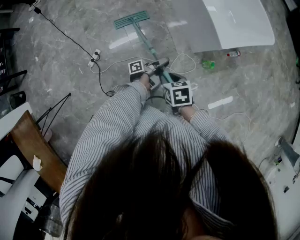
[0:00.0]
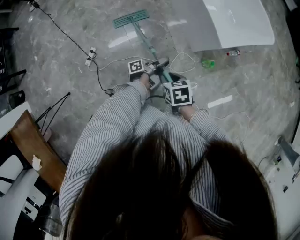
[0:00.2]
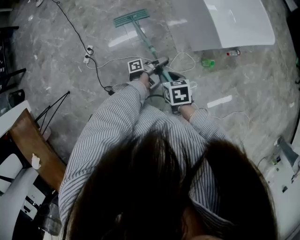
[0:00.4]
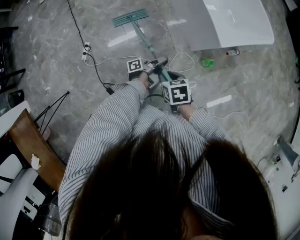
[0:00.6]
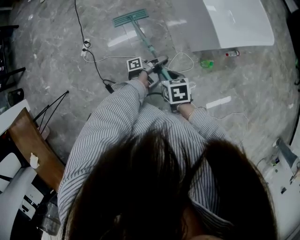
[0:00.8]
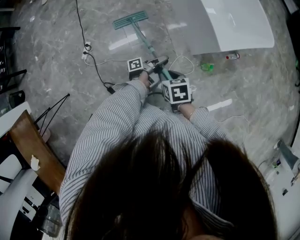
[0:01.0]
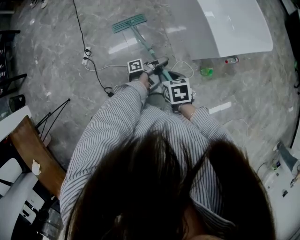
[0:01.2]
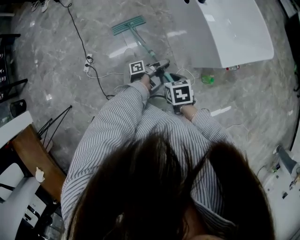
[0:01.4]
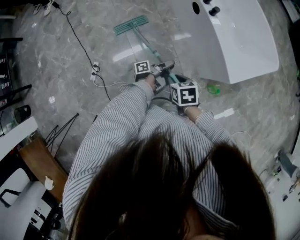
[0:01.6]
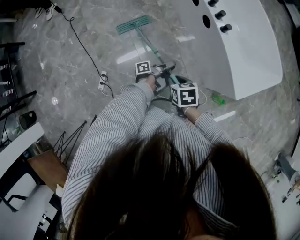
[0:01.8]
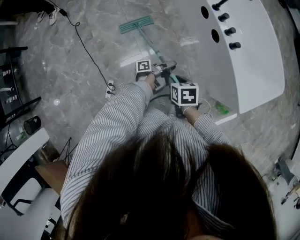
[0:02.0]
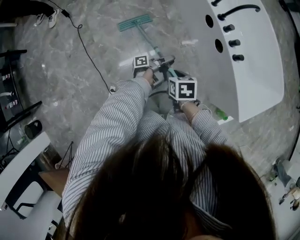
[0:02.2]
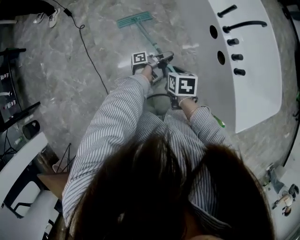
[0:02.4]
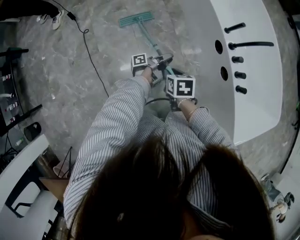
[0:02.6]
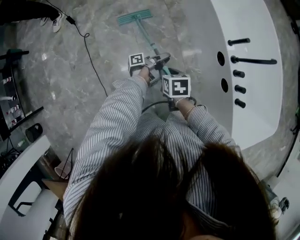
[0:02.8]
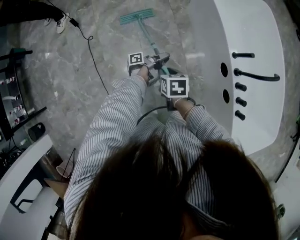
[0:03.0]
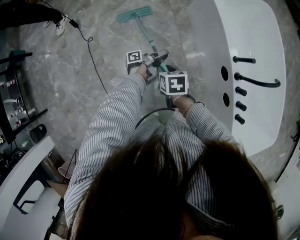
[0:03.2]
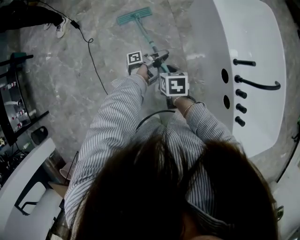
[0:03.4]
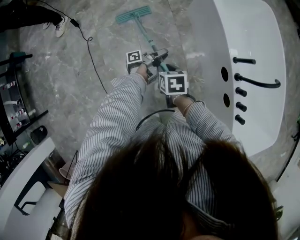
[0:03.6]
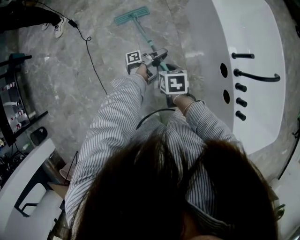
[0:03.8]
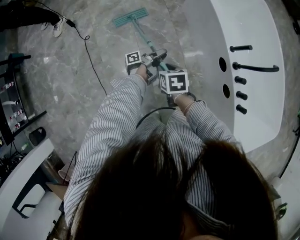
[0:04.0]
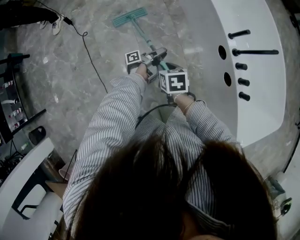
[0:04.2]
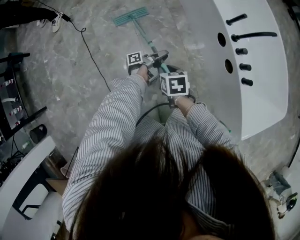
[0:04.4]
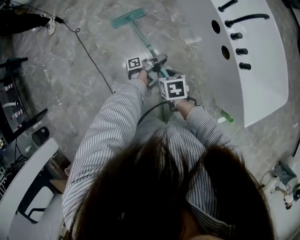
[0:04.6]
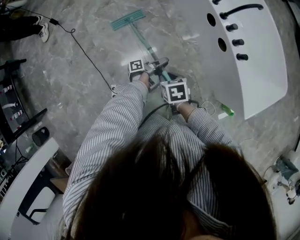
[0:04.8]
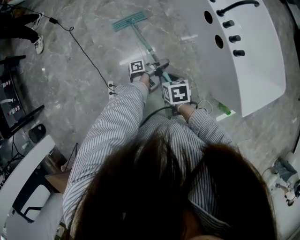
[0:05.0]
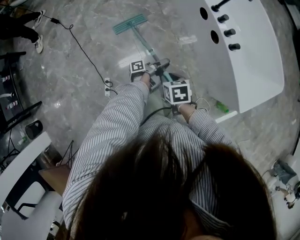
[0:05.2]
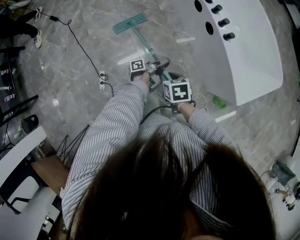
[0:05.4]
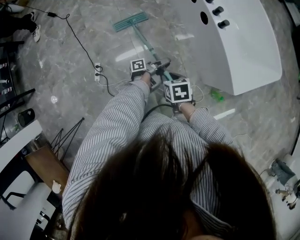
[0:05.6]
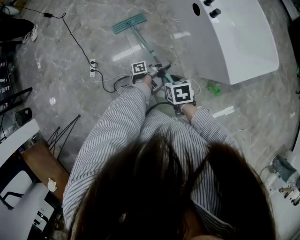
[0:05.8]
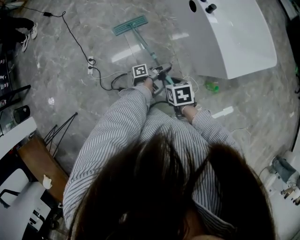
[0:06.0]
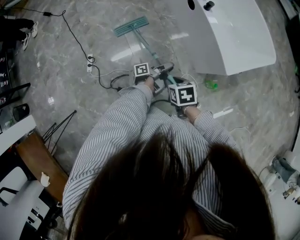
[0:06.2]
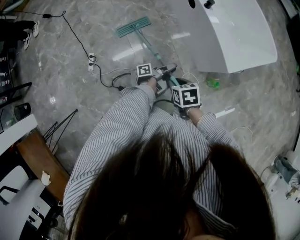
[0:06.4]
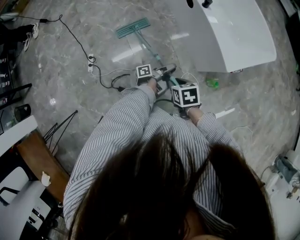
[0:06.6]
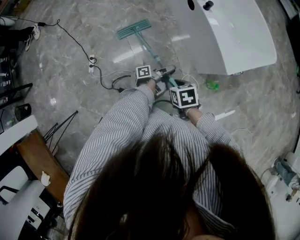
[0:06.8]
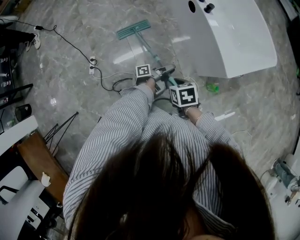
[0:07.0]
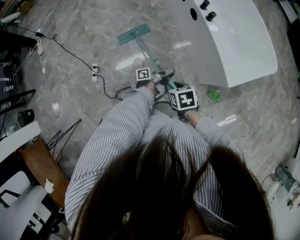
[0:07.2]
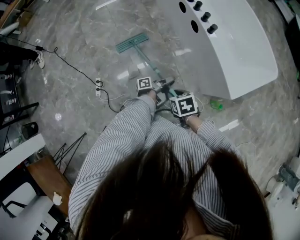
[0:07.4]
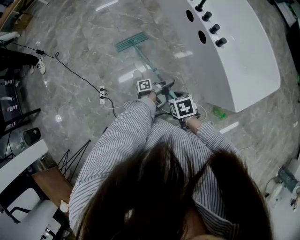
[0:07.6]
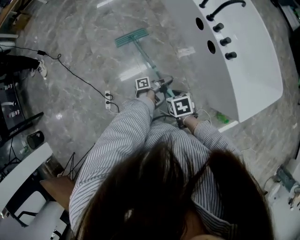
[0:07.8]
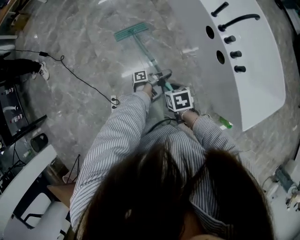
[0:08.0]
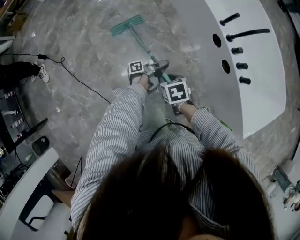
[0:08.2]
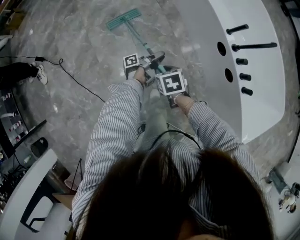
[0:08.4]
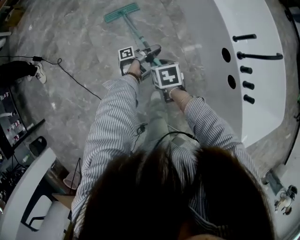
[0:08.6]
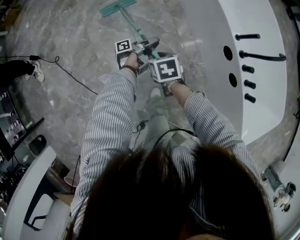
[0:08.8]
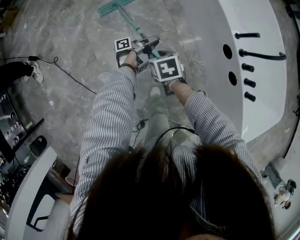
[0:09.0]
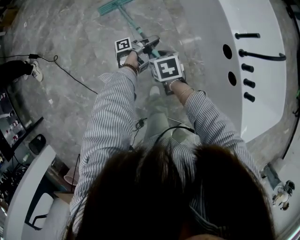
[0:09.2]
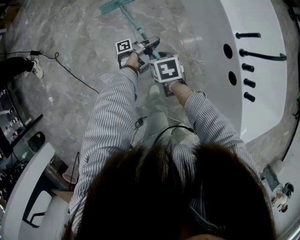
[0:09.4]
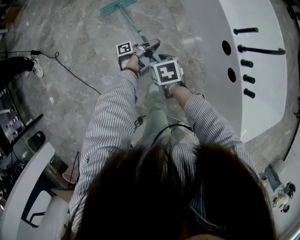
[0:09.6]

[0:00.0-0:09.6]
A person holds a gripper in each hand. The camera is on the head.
0:00.0 to 0:01.6: The right gripper shifts by approximately 20 cm.
0:01.6 to 0:03.2: The right gripper moves approximately 70 cm.
0:03.2 to 0:04.8: The right gripper ends up about 35 cm from where it was.
0:04.8 to 0:06.4: The right gripper shifts by approximately 50 cm.
0:06.4 to 0:08.0: The right gripper changes place by approximately 50 cm.
0:08.0 to 0:09.6: The right gripper shifts by roughly 30 cm.

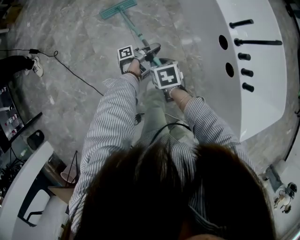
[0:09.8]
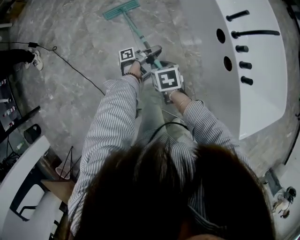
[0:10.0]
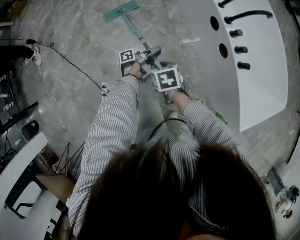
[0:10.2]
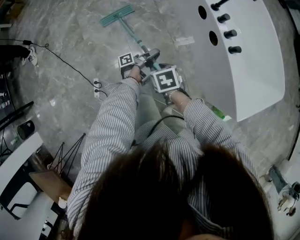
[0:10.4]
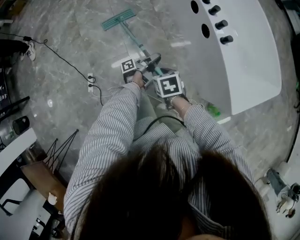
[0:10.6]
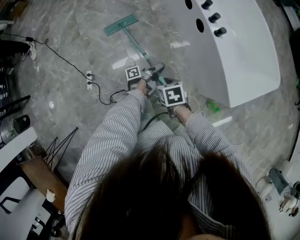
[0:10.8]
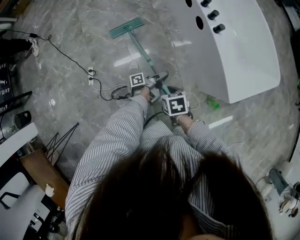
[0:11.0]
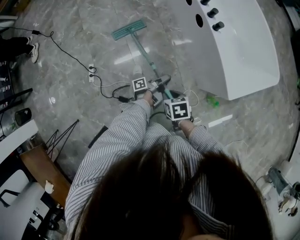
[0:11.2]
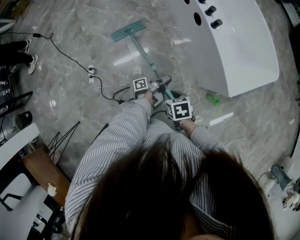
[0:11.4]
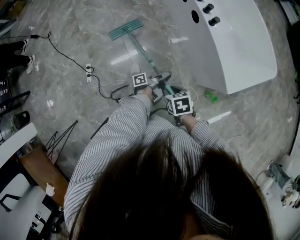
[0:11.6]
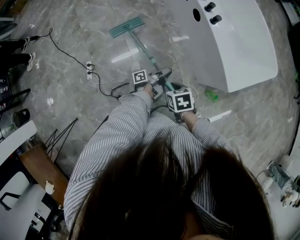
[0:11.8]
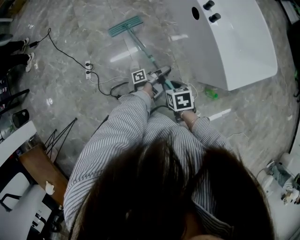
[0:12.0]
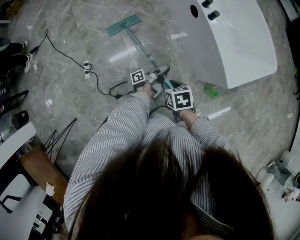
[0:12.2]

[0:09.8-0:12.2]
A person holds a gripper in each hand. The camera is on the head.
0:09.8 to 0:11.0: The right gripper moves about 60 cm.

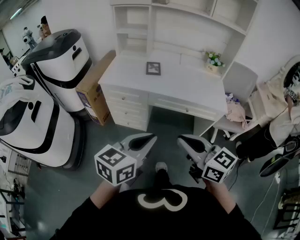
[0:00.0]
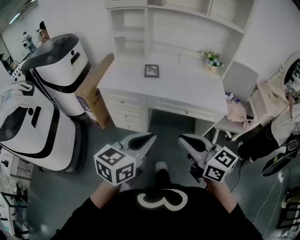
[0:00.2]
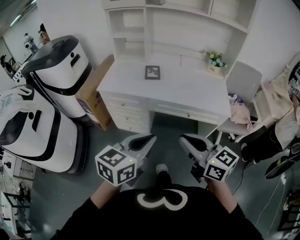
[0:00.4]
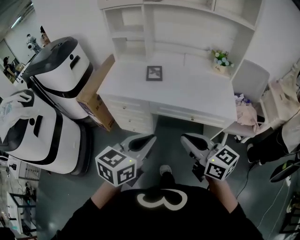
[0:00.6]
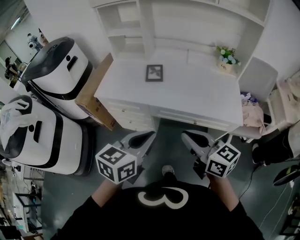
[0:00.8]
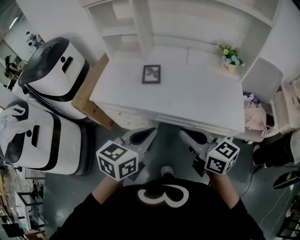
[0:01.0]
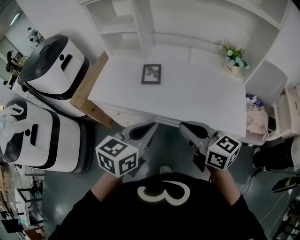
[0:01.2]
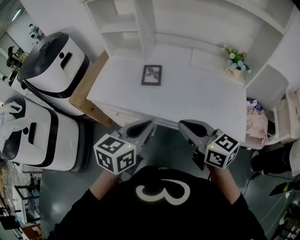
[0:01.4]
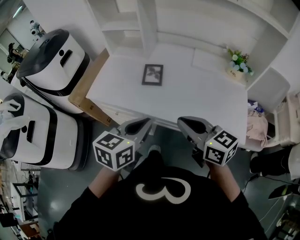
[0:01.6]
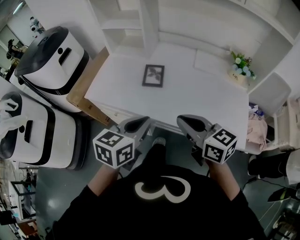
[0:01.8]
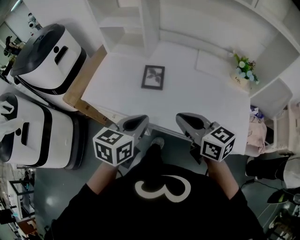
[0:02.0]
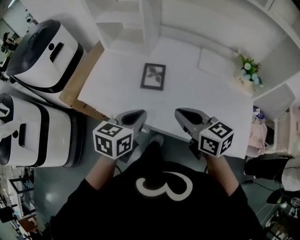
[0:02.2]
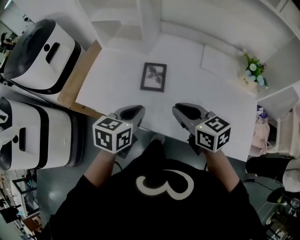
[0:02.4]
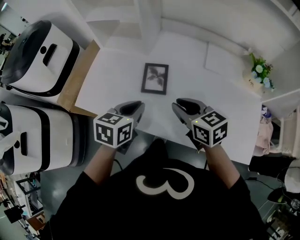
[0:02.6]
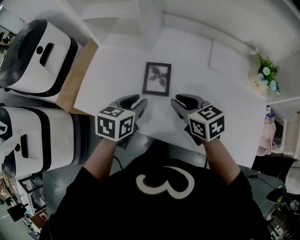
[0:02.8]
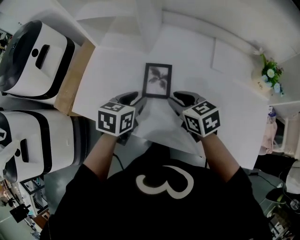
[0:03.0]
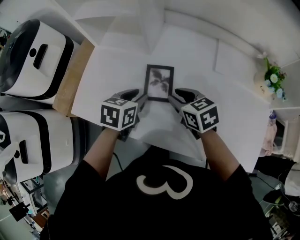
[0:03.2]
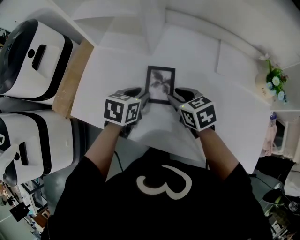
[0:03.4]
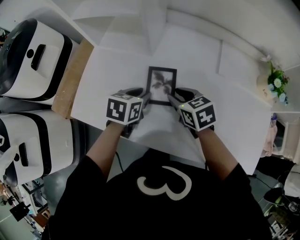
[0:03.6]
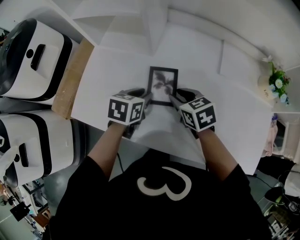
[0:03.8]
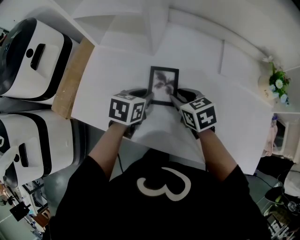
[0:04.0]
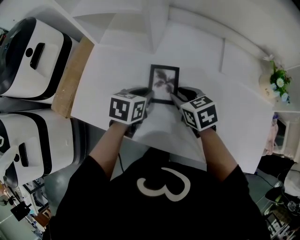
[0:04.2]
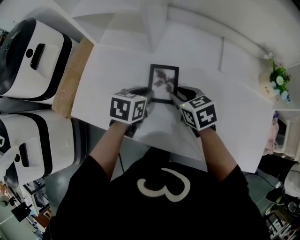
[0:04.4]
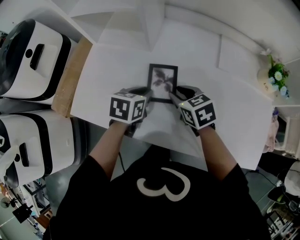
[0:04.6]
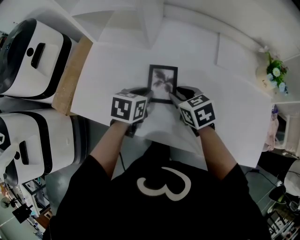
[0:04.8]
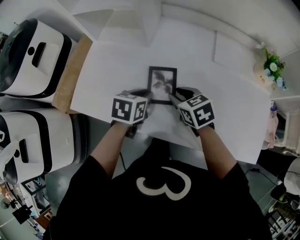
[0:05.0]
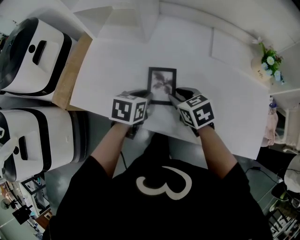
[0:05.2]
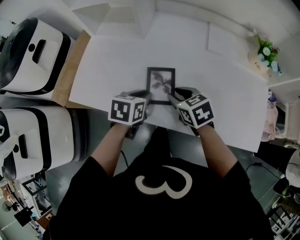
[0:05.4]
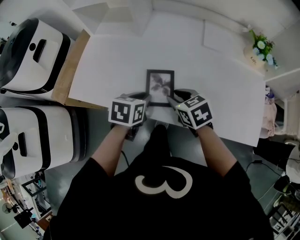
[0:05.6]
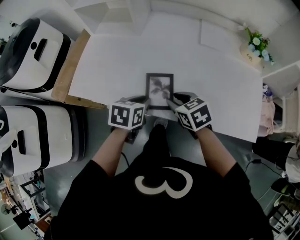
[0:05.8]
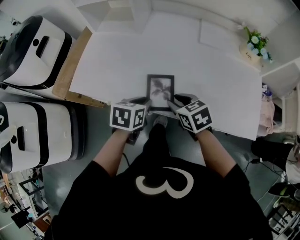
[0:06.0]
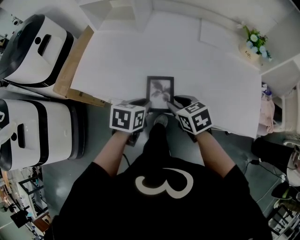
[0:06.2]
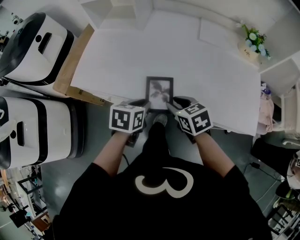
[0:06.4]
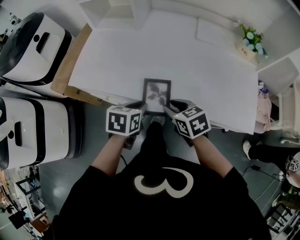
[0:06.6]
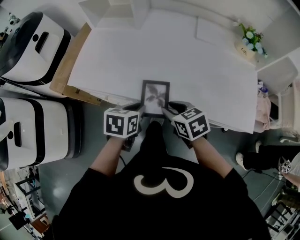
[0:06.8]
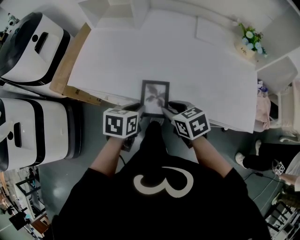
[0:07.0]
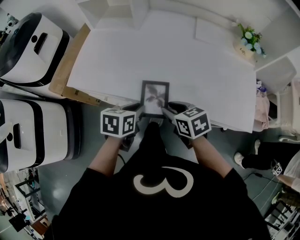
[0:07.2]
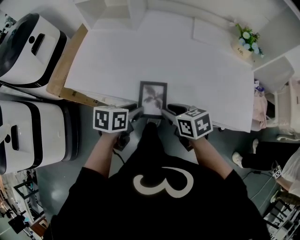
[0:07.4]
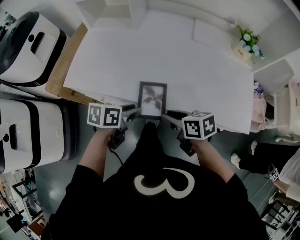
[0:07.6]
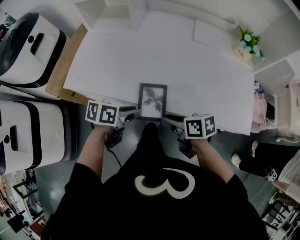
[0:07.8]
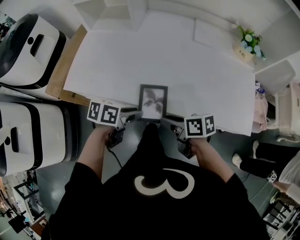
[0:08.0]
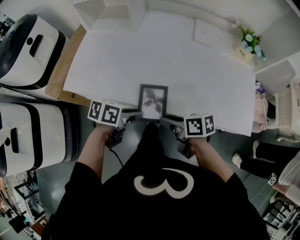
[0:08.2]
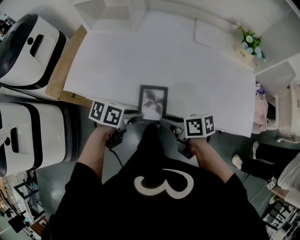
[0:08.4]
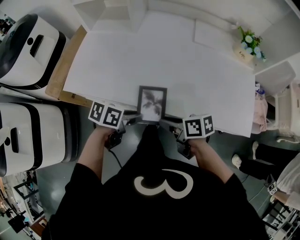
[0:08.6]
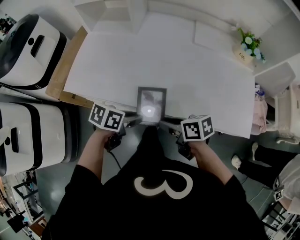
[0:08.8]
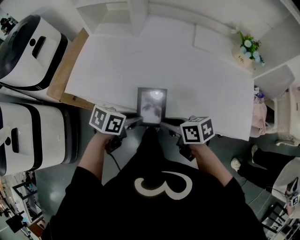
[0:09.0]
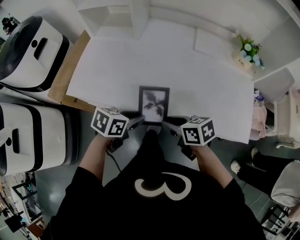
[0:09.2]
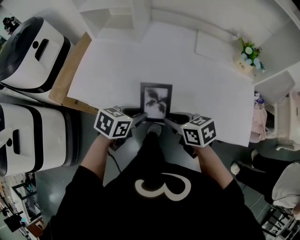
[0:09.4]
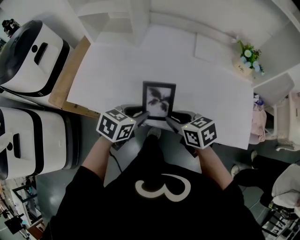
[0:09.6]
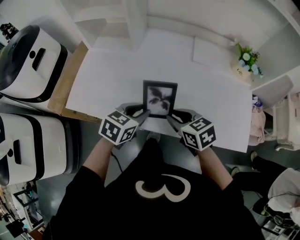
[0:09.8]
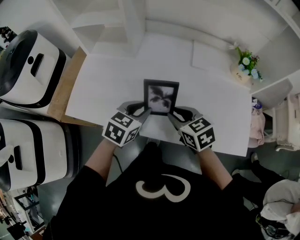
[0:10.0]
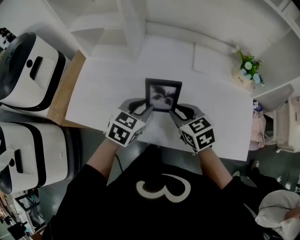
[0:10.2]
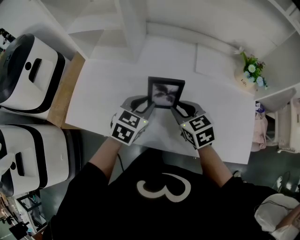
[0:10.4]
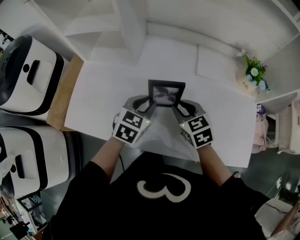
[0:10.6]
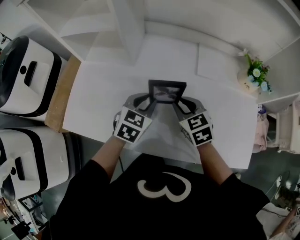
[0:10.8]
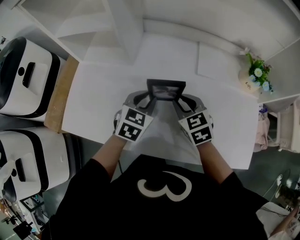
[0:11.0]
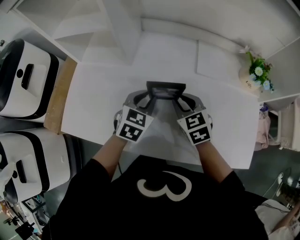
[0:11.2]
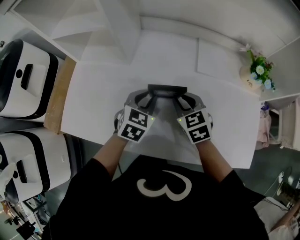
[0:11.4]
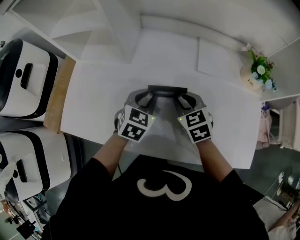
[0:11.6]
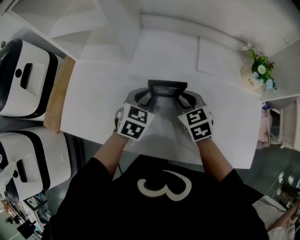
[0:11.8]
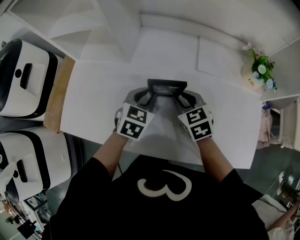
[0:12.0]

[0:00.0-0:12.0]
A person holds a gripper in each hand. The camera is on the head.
0:00.0 to 0:01.6: The two grippers go about 35 cm forward.
0:01.6 to 0:03.0: The grippers both shift forward and downward by roughly 35 cm. The left gripper swivels roughly 20 degrees, and opens its fingers; the right gripper rotates roughly 30 degrees, and opens its fingers.
0:03.0 to 0:04.4: The left gripper travels downward by about 5 cm. The right gripper changes place by roughly 5 cm.
0:04.4 to 0:06.0: Both grippers travel together backward, about 20 cm.
0:06.0 to 0:07.6: The two grippers go some 5 cm backward. The right gripper changes its angle by about 30 degrees, while the left gripper rotates some 20 degrees.
0:07.6 to 0:09.0: The grippers stay close to where they were, moving slightly.
0:09.0 to 0:10.4: The right gripper ends up approximately 20 cm from where it was, and swivels about 40 degrees; the left gripper changes place by about 20 cm, and swivels roughly 40 degrees.
0:10.4 to 0:12.0: The grippers both shift forward by about 5 cm.
